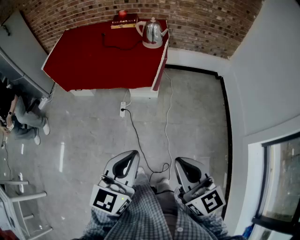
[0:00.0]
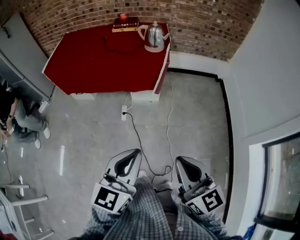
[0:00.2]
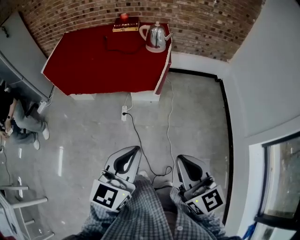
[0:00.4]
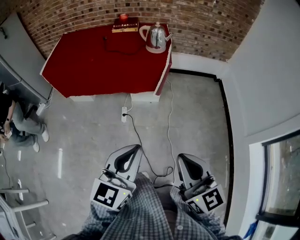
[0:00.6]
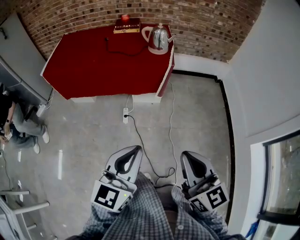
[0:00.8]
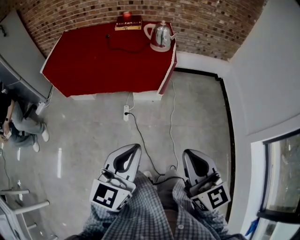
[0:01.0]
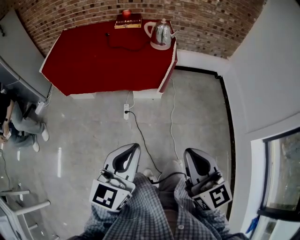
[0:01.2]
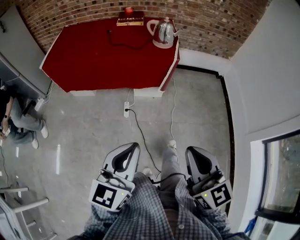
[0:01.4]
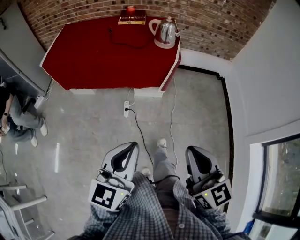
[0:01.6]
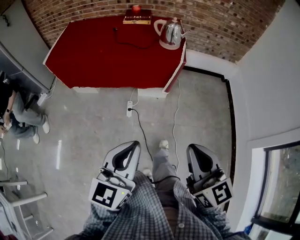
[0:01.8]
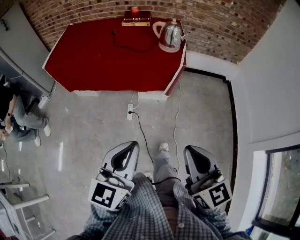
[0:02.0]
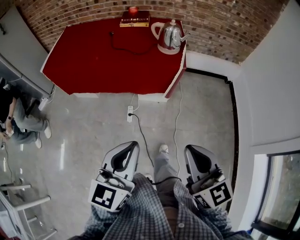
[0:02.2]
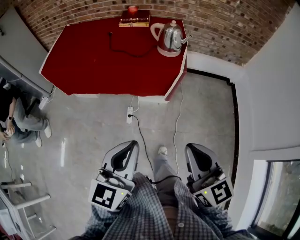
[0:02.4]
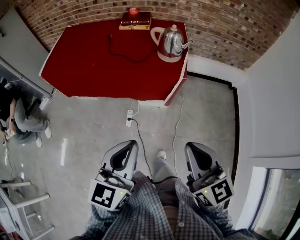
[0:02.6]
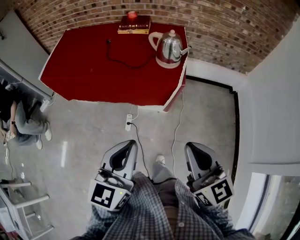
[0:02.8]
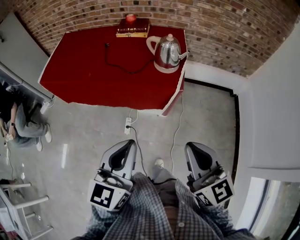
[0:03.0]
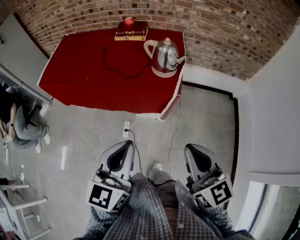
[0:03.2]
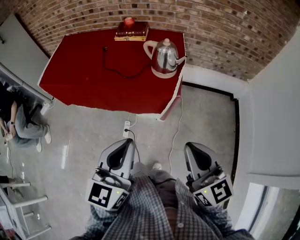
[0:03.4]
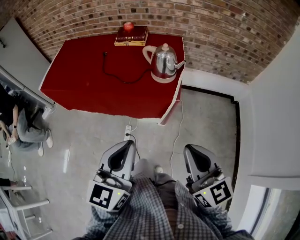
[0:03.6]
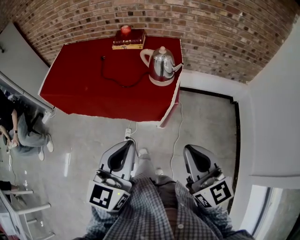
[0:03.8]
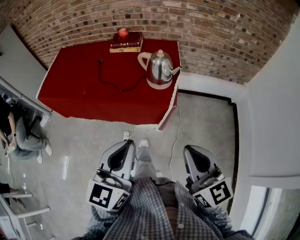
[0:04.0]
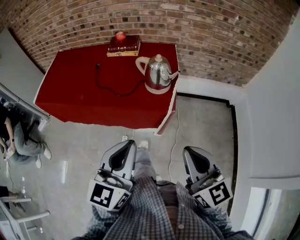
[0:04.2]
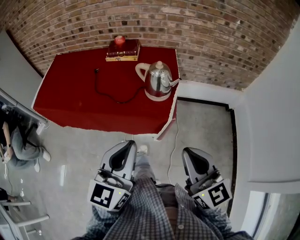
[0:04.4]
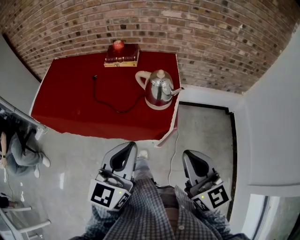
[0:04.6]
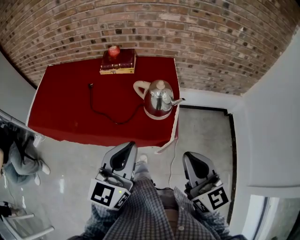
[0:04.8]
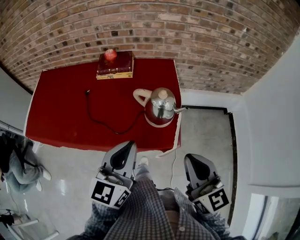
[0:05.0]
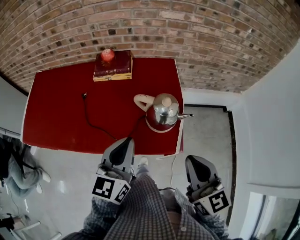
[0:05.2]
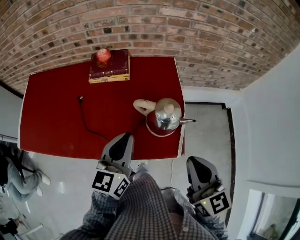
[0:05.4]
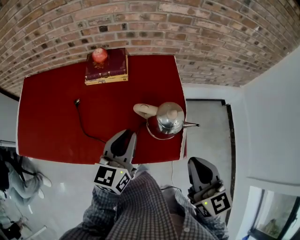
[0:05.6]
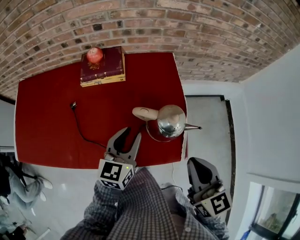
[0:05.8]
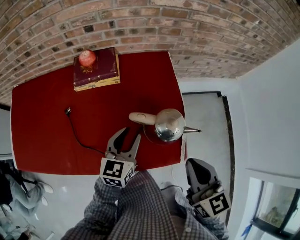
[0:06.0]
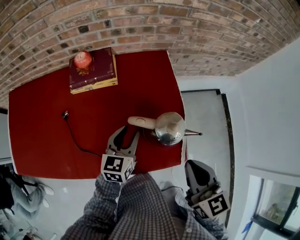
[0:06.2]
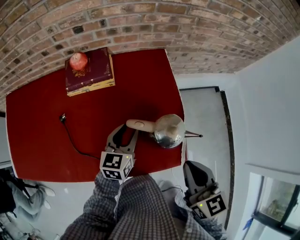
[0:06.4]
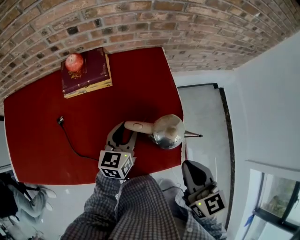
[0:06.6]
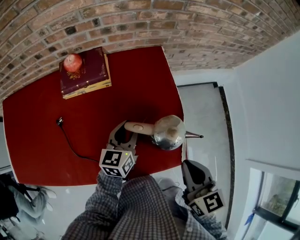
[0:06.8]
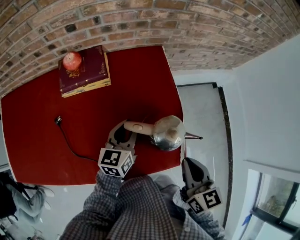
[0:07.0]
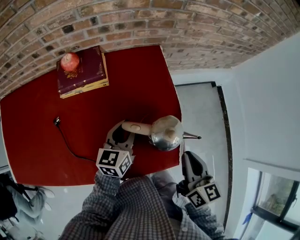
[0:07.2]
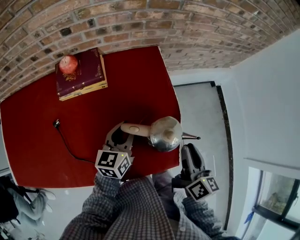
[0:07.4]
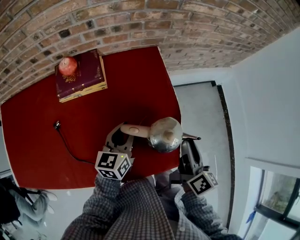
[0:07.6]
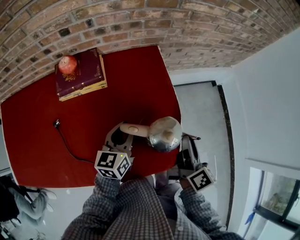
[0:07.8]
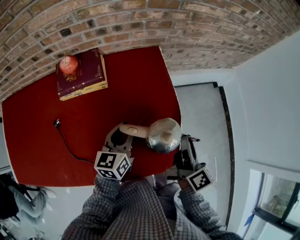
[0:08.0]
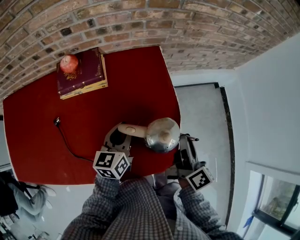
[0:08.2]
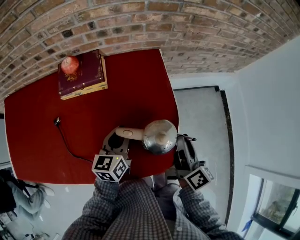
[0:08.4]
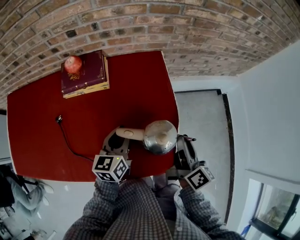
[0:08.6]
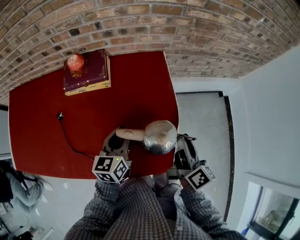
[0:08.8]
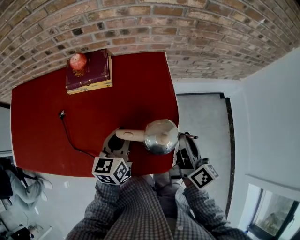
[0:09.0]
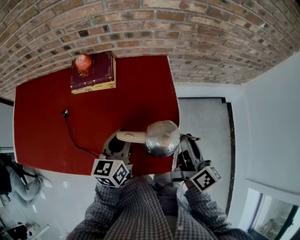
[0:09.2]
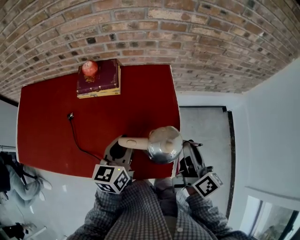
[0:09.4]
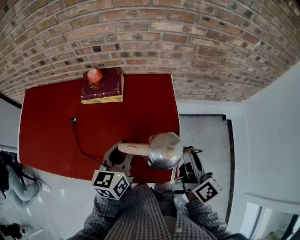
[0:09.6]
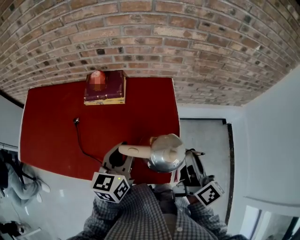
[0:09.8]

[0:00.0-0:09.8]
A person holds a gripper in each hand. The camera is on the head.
0:00.0 to 0:01.4: The two grippers go approximately 10 cm to the left.
0:01.4 to 0:02.8: Both grippers travel together forward, about 25 cm.
0:02.8 to 0:04.2: The grippers both shift forward and to the right by roughly 15 cm.
0:04.2 to 0:05.6: The grippers both shift forward by about 30 cm.
0:05.6 to 0:07.0: The right gripper moves downward, some 10 cm, and swivels approximately 20 degrees; the left gripper heads downward and forward, covering some 15 cm.
0:07.0 to 0:08.4: The right gripper shifts about 10 cm forward, swivels approximately 40 degrees, and opens.
0:08.4 to 0:09.8: The grippers both shift upward by about 10 cm.

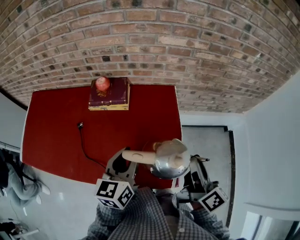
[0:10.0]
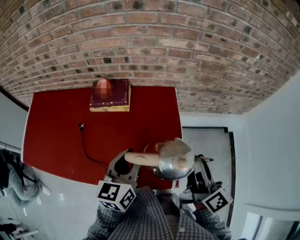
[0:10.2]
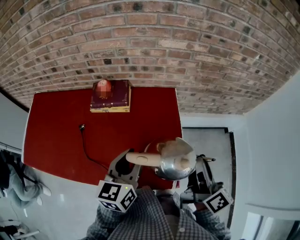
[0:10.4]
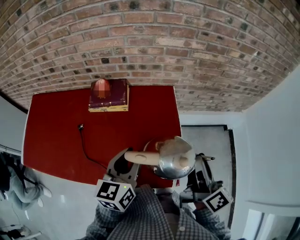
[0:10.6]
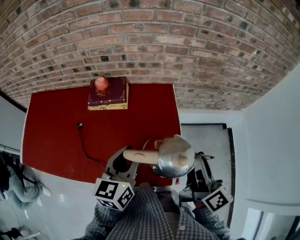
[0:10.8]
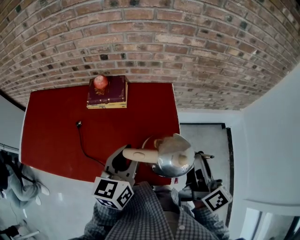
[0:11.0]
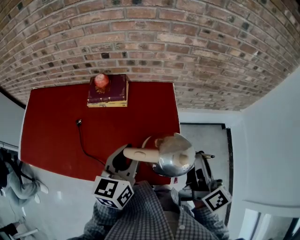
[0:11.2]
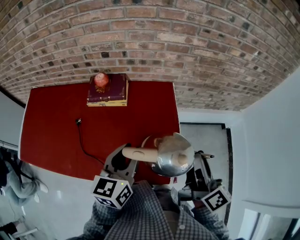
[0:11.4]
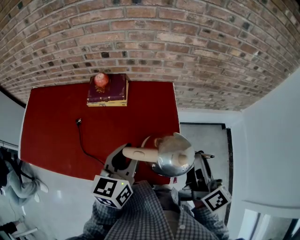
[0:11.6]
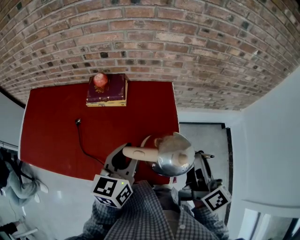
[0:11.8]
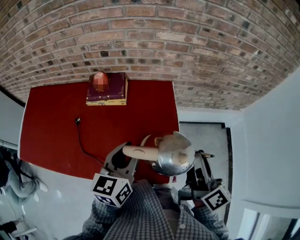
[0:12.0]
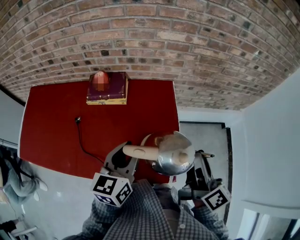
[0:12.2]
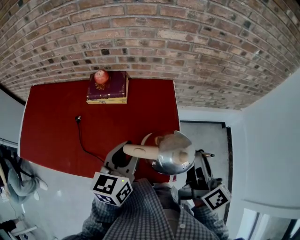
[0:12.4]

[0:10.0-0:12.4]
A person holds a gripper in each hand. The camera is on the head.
0:10.0 to 0:11.2: The grippers move only a little.
0:11.2 to 0:12.4: Both grippers stay put.

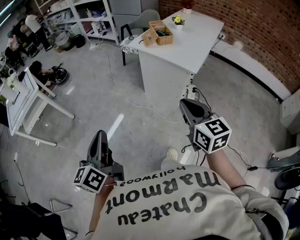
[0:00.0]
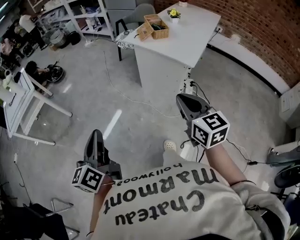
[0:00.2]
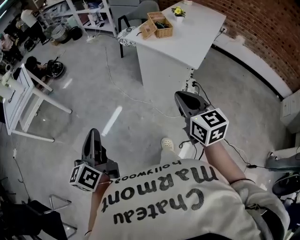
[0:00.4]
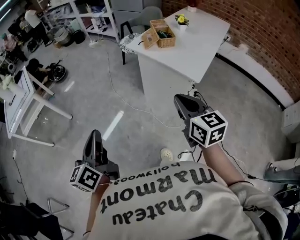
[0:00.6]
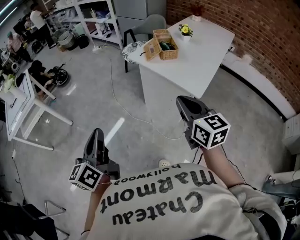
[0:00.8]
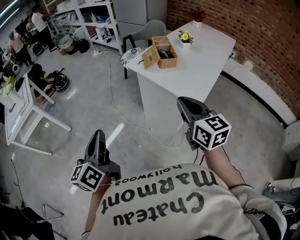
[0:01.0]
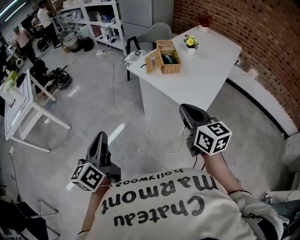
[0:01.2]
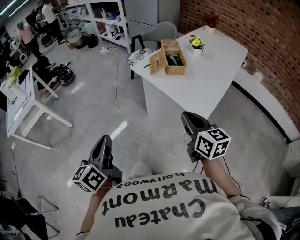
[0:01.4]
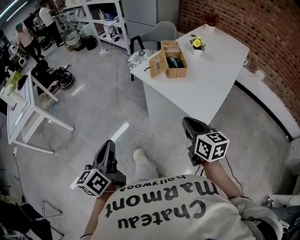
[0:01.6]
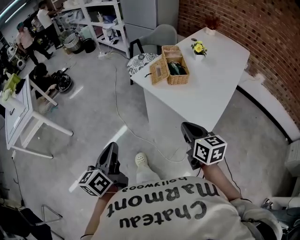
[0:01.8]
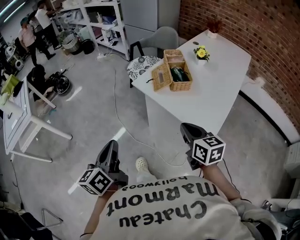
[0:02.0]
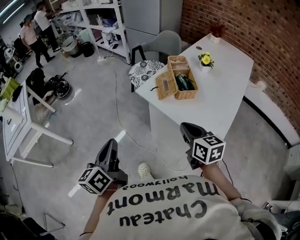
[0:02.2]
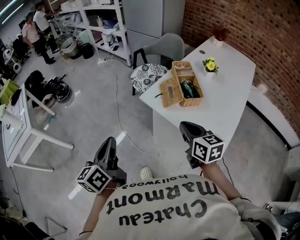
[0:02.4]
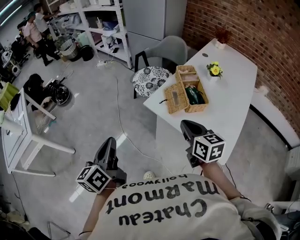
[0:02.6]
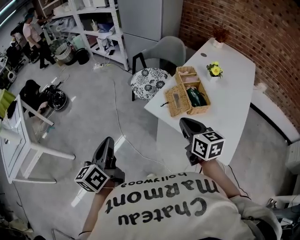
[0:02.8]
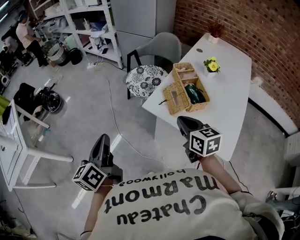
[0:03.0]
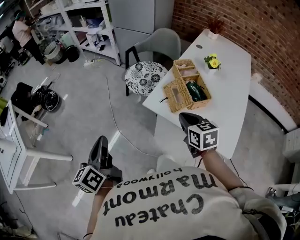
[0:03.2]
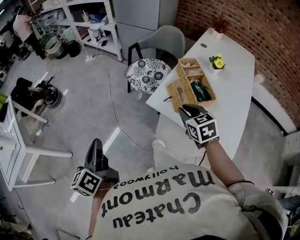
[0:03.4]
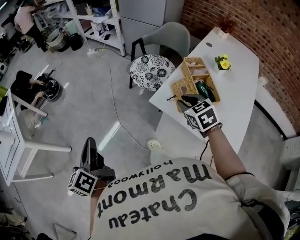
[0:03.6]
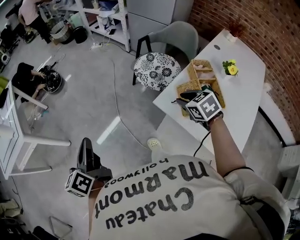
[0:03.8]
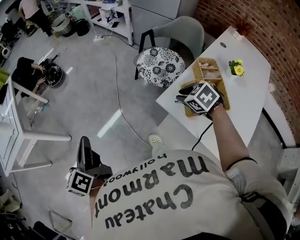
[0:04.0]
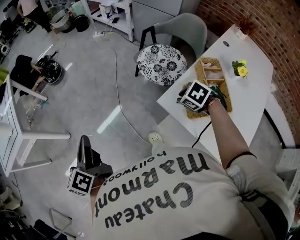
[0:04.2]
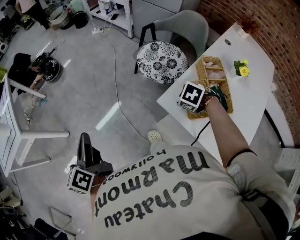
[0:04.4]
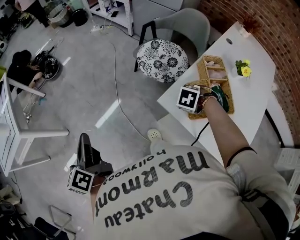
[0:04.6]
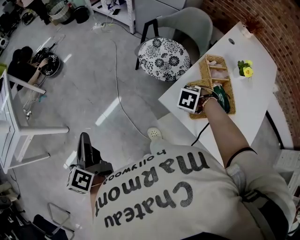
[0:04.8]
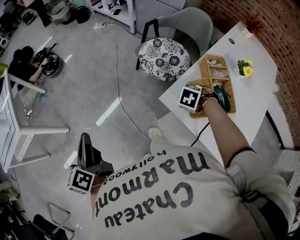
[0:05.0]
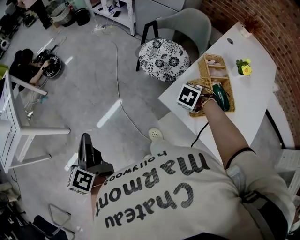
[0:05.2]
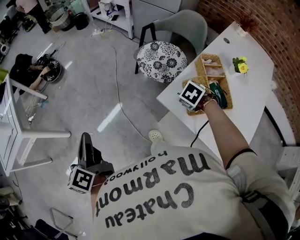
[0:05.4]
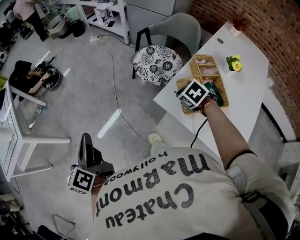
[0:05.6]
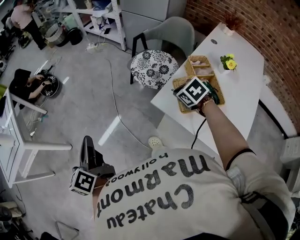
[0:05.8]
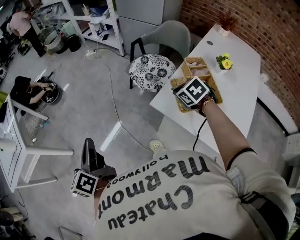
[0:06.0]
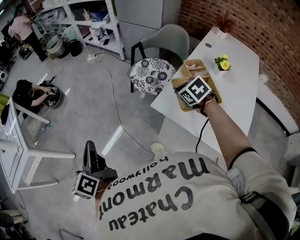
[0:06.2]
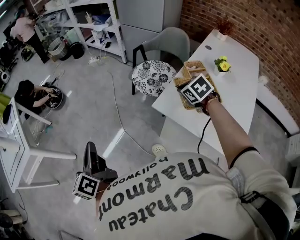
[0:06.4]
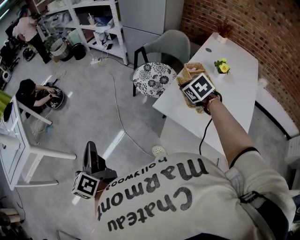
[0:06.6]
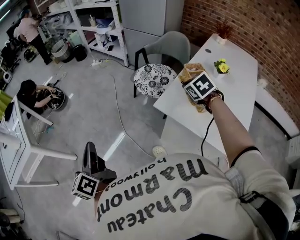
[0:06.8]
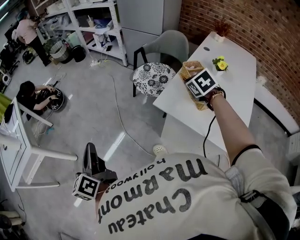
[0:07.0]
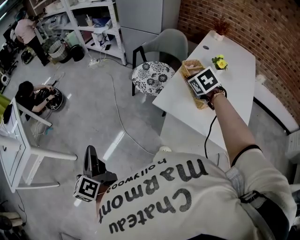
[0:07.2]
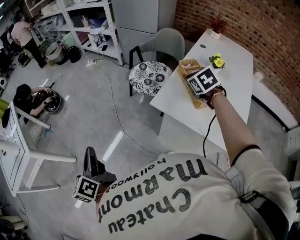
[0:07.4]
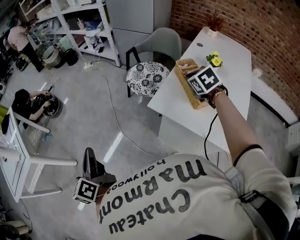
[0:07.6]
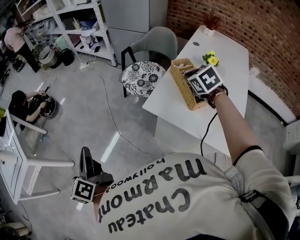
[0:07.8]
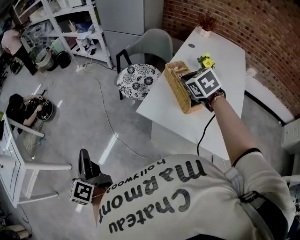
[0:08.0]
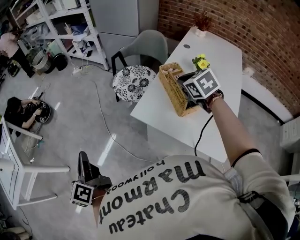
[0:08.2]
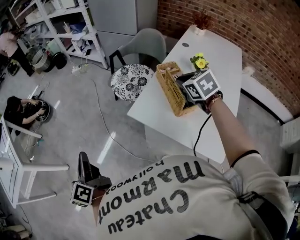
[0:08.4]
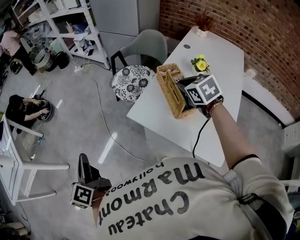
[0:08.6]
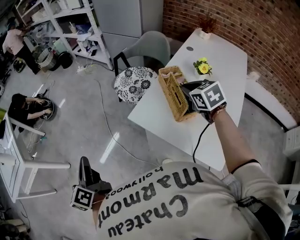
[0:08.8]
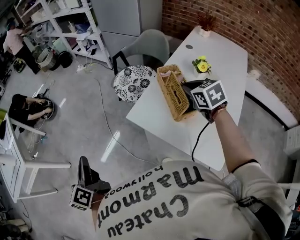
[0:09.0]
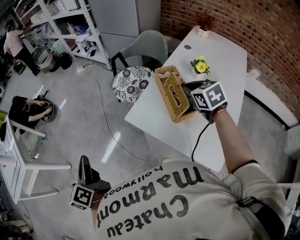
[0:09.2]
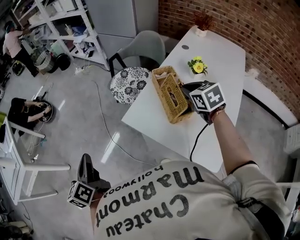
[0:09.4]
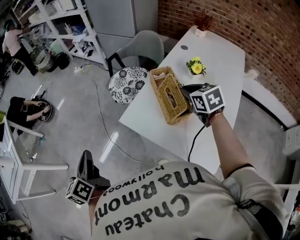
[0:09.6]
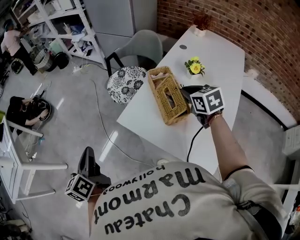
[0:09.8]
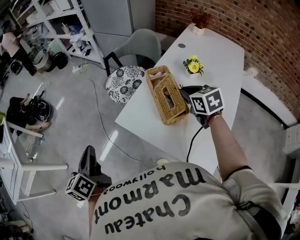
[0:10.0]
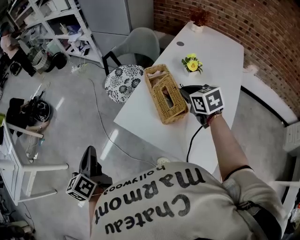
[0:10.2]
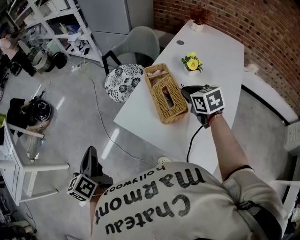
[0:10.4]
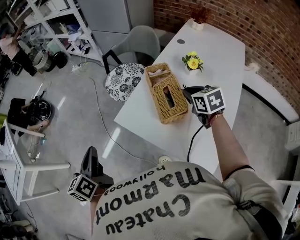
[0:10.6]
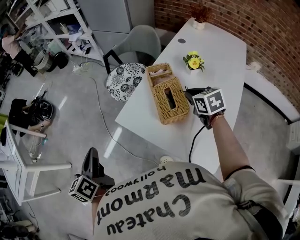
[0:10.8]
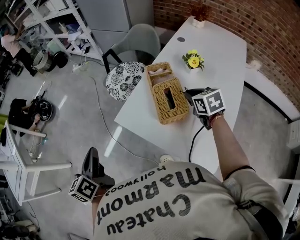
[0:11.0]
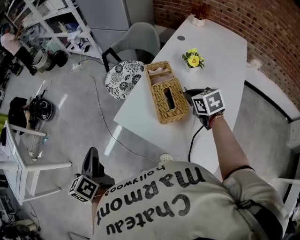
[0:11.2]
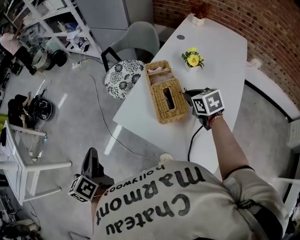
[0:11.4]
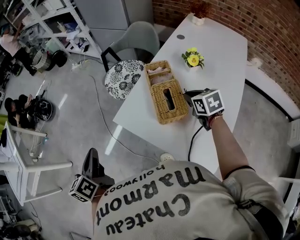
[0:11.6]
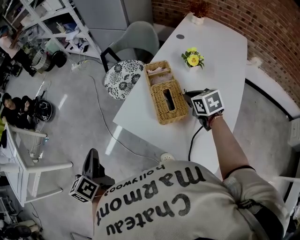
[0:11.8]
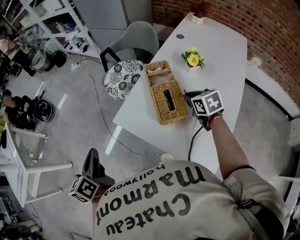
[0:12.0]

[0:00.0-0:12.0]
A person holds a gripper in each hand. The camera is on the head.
0:00.0 to 0:01.6: The two grippers go roughly 30 cm forward and to the right.
0:01.6 to 0:03.0: The grippers both shift forward by some 30 cm.
0:03.0 to 0:04.4: The right gripper moves approximately 25 cm, angles its fingers downward, by about 60 degrees, and opens up; the left gripper moves approximately 15 cm, and swivels roughly 20 degrees.
0:04.4 to 0:06.0: The right gripper goes some 10 cm upward, swivels approximately 30 degrees, and closes its fingers.
0:06.0 to 0:07.6: The right gripper shifts about 15 cm upward and to the right.
0:07.6 to 0:09.0: Both grippers travel together to the right, roughly 10 cm.
0:09.0 to 0:10.4: The left gripper is displaced to the right by approximately 15 cm; the right gripper shifts roughly 5 cm to the right.
0:10.4 to 0:12.0: The right gripper heads downward, covering approximately 5 cm.
